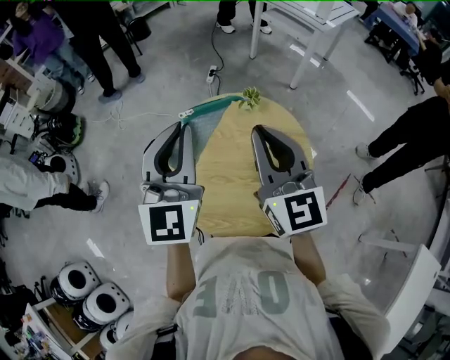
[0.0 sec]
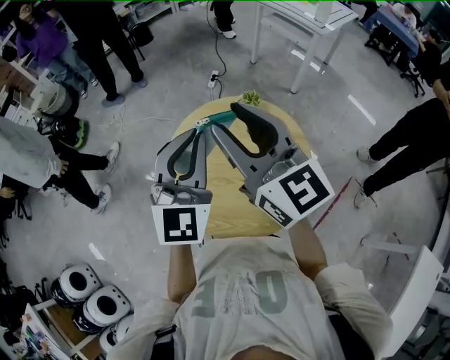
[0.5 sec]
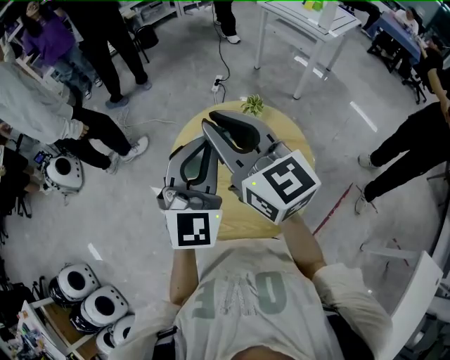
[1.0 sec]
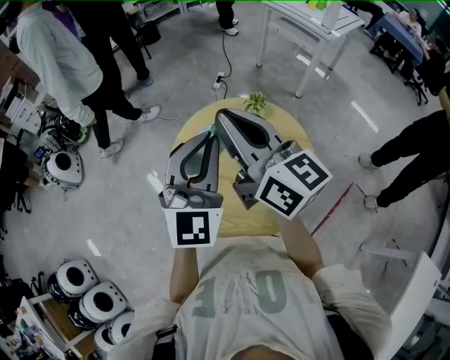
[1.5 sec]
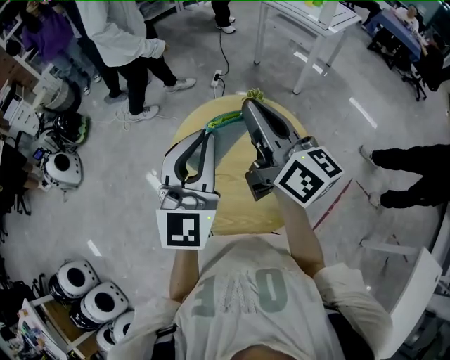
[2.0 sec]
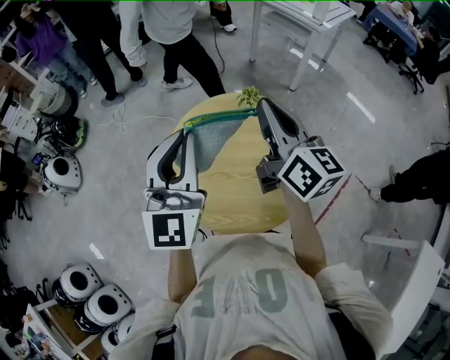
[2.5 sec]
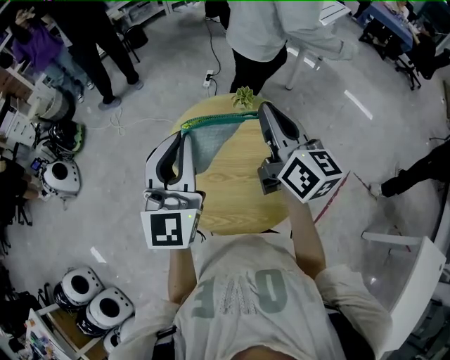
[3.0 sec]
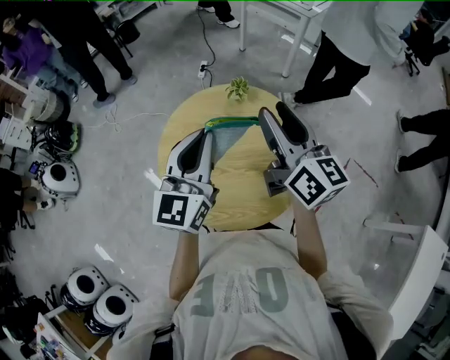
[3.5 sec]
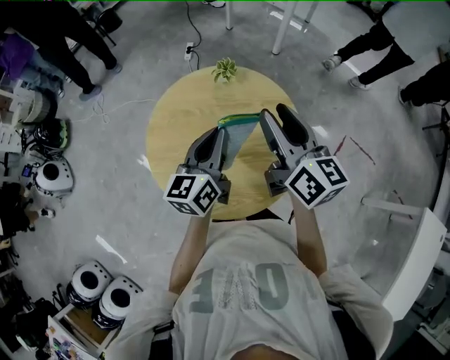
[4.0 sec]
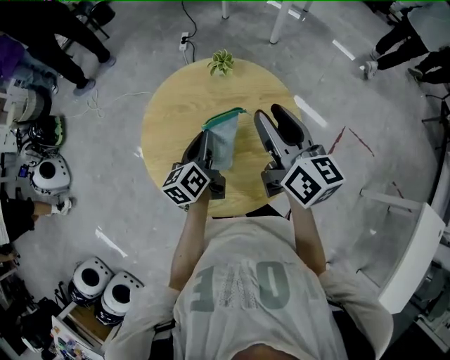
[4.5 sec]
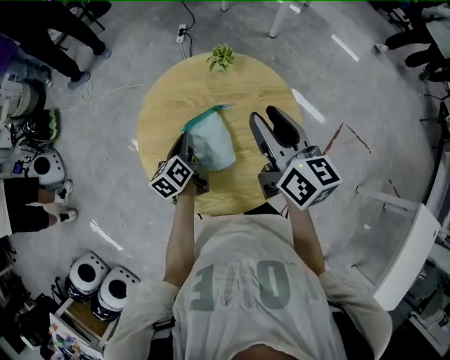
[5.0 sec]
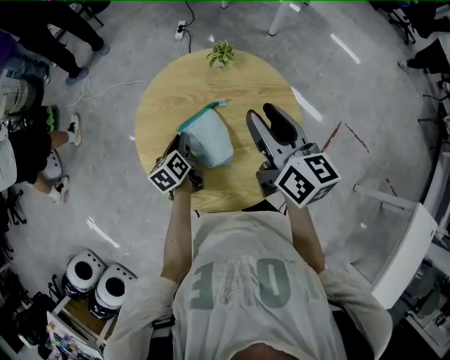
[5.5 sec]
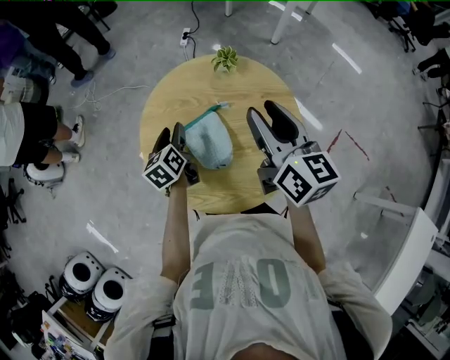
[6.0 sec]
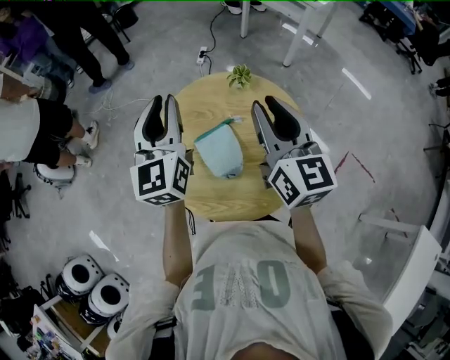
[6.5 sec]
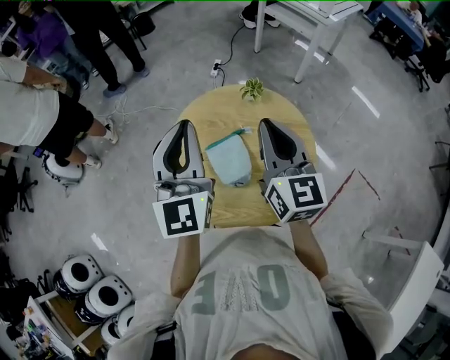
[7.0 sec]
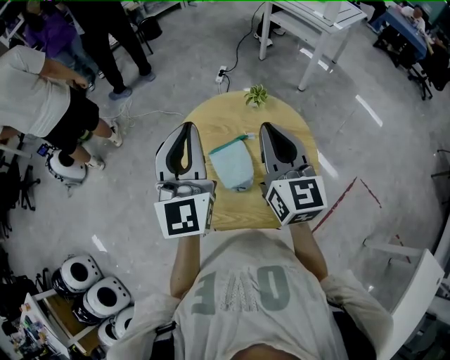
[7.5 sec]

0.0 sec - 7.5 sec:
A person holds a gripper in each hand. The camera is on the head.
0.0 sec - 2.0 sec: The right gripper moves approximately 10 cm to the left and comes back, changes its angle by some 40 degrees, and opens, then closes once more, while the left gripper changes place by about 5 cm.
2.0 sec - 4.0 sec: The left gripper shifts roughly 20 cm downward and to the right, and rotates around the line of its fingers by approximately 40 degrees, counterclockwise from behind, while the right gripper moves to the right and downward, approximately 15 cm, changes its angle by roughly 20 degrees, and opens.
4.0 sec - 5.5 sec: The right gripper travels downward by roughly 5 cm. Meanwhile the left gripper travels downward and to the left by some 25 cm, and turns by roughly 40 degrees.
5.5 sec - 7.5 sec: The left gripper is displaced upward by roughly 40 cm, tilts its fingers approximately 40 degrees upward, and opens and closes again. Meanwhile the right gripper goes some 10 cm upward and to the left, swivels some 30 degrees, and closes its fingers.

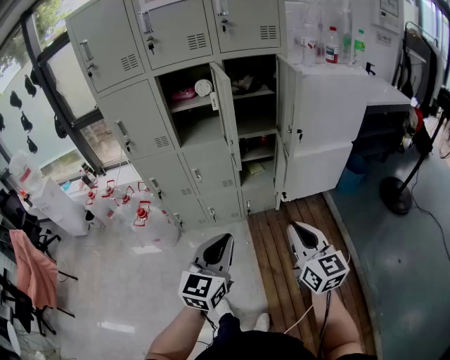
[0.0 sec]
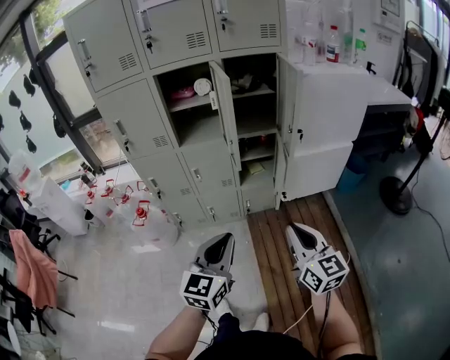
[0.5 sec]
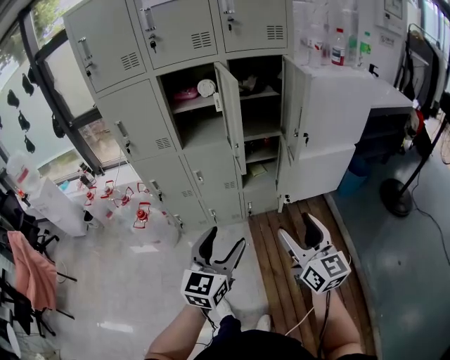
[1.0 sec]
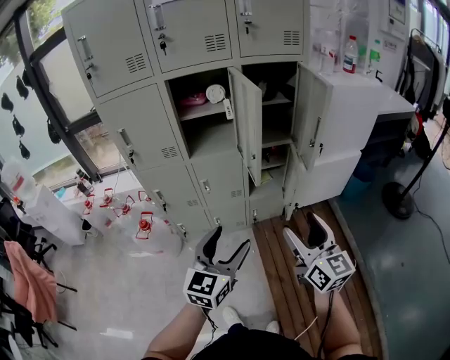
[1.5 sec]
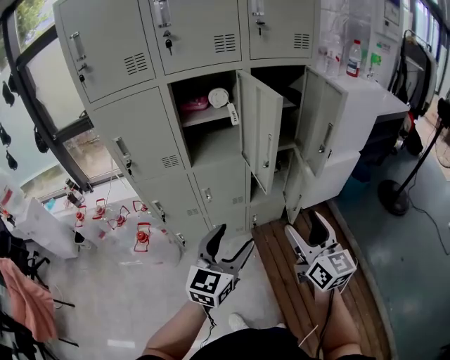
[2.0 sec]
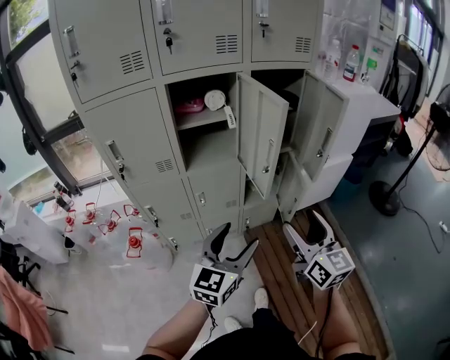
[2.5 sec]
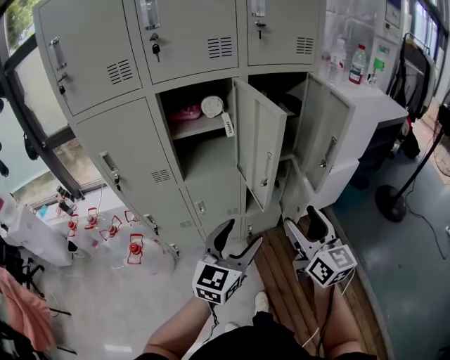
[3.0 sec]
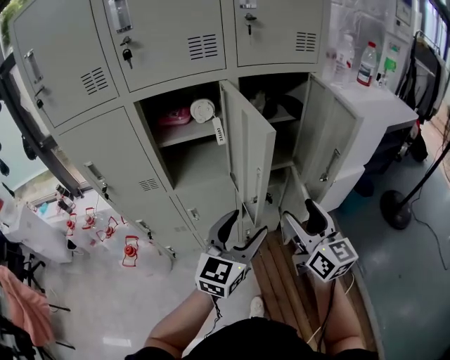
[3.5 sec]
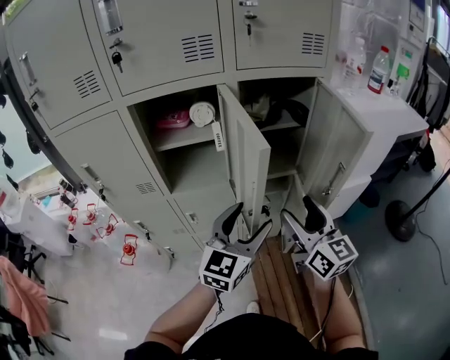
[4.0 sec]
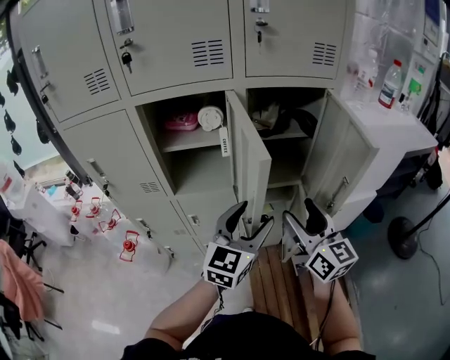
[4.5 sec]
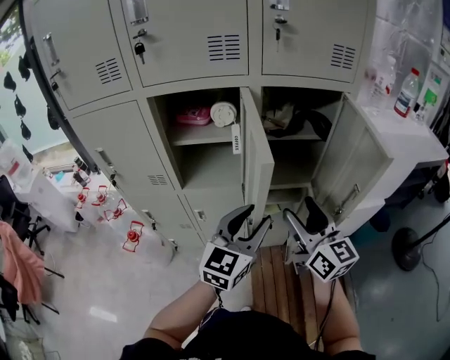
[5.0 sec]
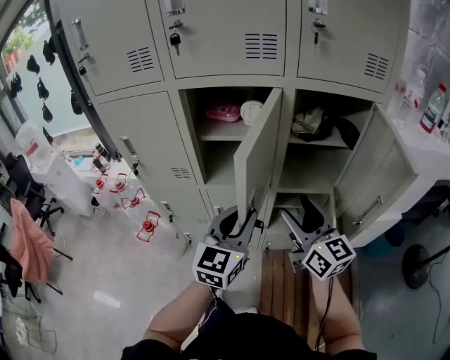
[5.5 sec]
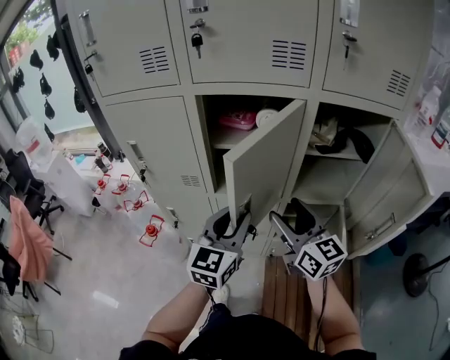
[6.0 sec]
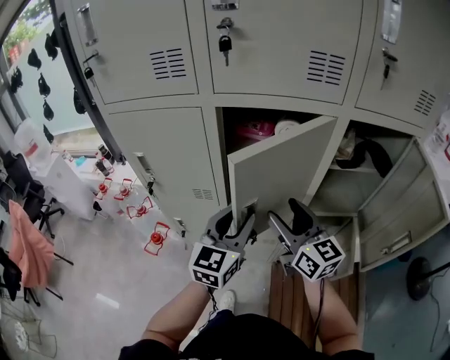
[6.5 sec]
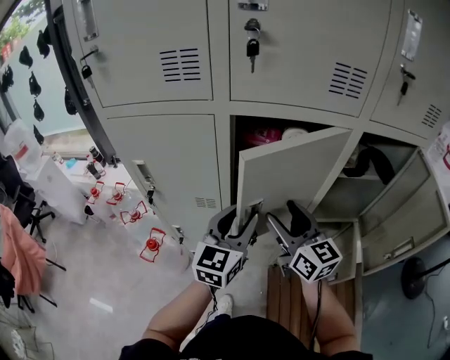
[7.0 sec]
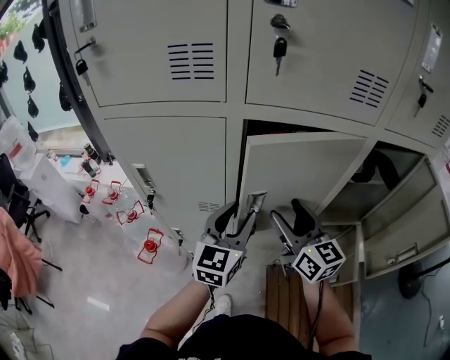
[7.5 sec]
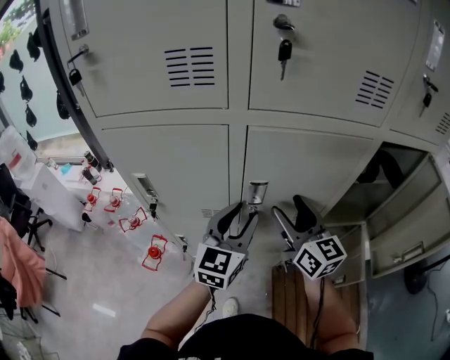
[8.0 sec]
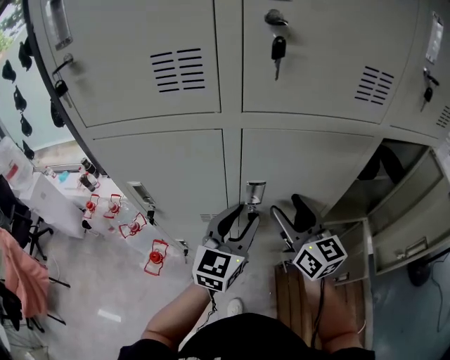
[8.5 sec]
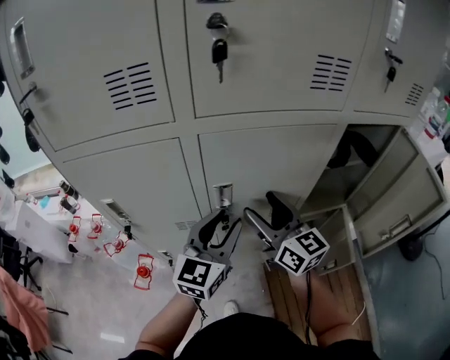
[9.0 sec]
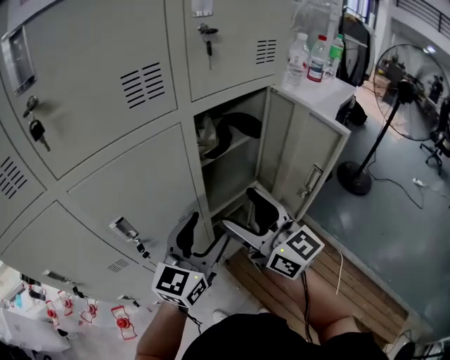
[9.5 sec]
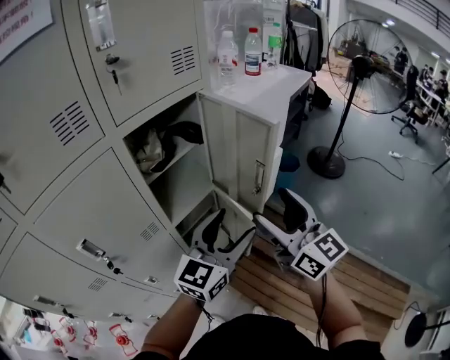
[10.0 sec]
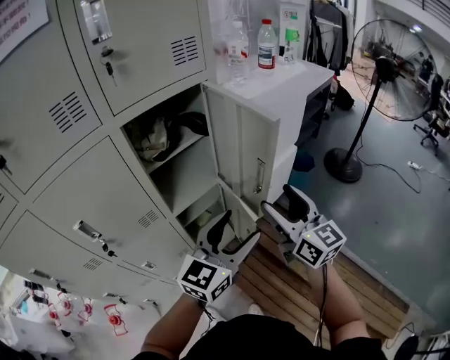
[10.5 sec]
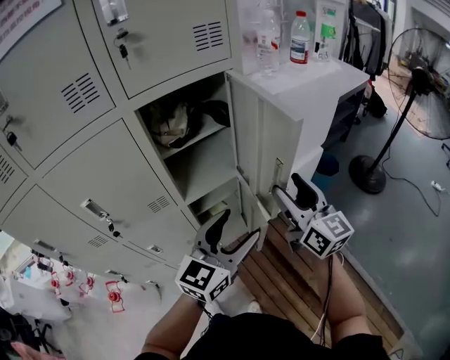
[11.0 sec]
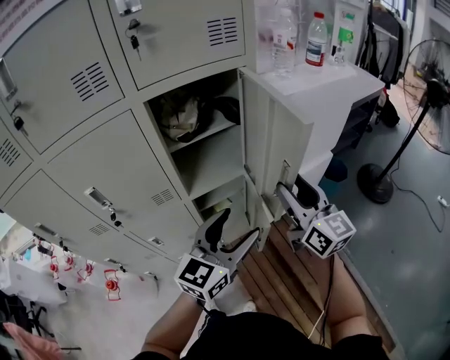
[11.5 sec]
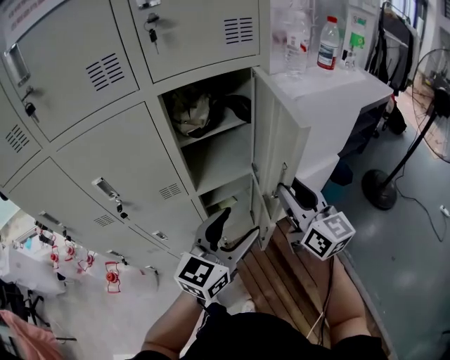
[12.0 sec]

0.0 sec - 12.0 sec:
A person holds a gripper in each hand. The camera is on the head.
0.0 sec - 2.0 sec: The right gripper moves to the left and forward, about 20 cm, and opens up, while the left gripper moves forward and to the left, approximately 20 cm, and opens.
2.0 sec - 4.0 sec: The left gripper shifts about 25 cm forward and to the right; the right gripper heads forward, covering some 25 cm.
4.0 sec - 6.0 sec: The left gripper moves to the left, some 15 cm, rotates approximately 20 degrees, and closes. The right gripper heads to the left and forward, covering approximately 20 cm, and changes its angle by approximately 20 degrees.
6.0 sec - 8.0 sec: The two grippers go some 15 cm forward and to the left.
8.0 sec - 10.0 sec: The right gripper shifts by approximately 30 cm, and swivels approximately 50 degrees, while the left gripper changes place by approximately 25 cm, swivels some 60 degrees, and opens up.
10.0 sec - 12.0 sec: The left gripper changes its angle by roughly 20 degrees. Meanwhile the right gripper goes roughly 10 cm forward and downward, and closes.

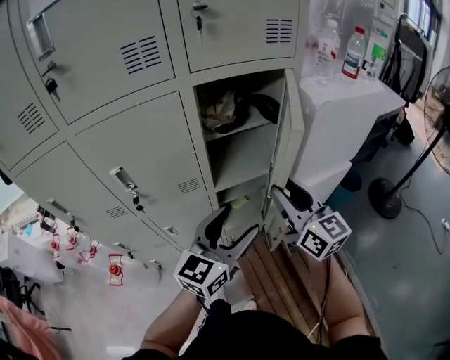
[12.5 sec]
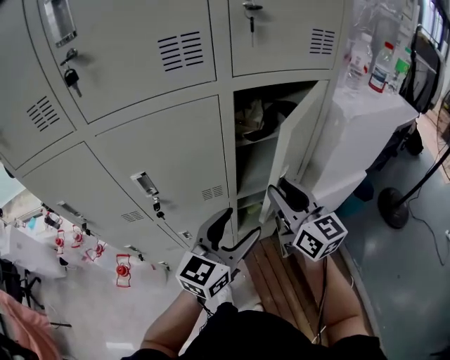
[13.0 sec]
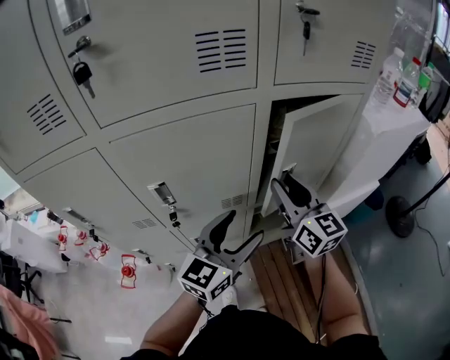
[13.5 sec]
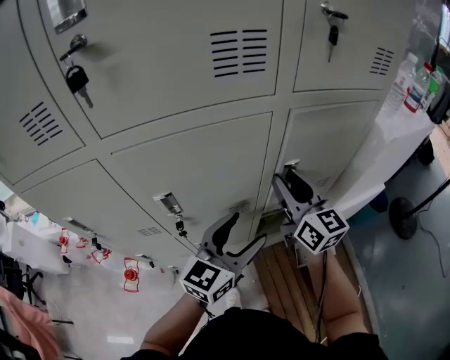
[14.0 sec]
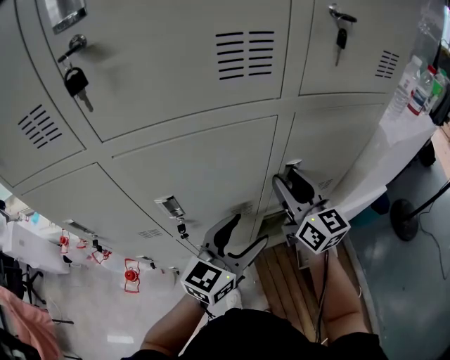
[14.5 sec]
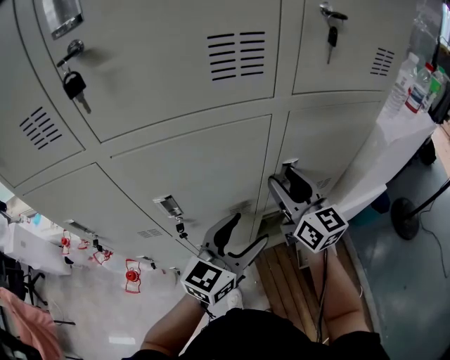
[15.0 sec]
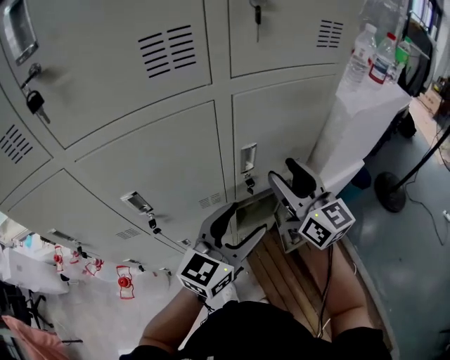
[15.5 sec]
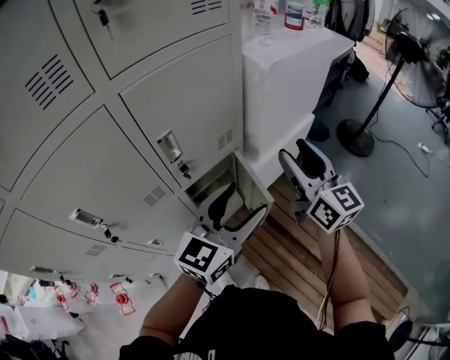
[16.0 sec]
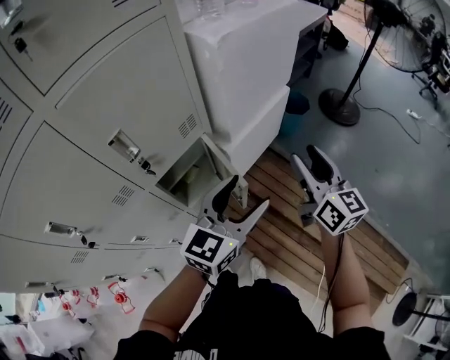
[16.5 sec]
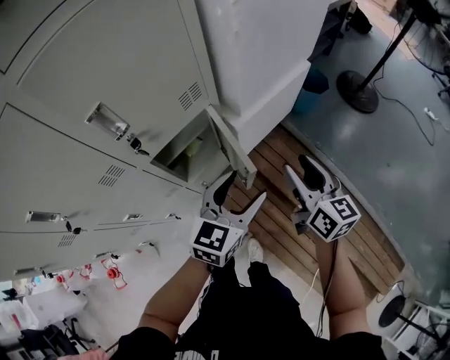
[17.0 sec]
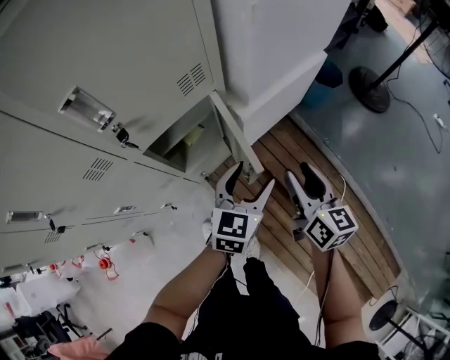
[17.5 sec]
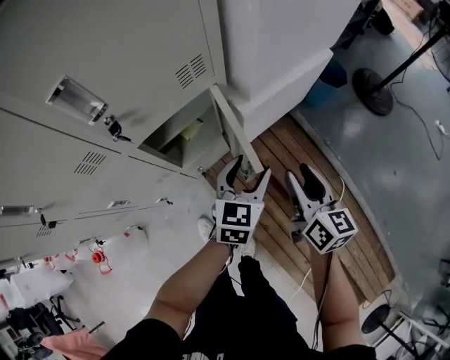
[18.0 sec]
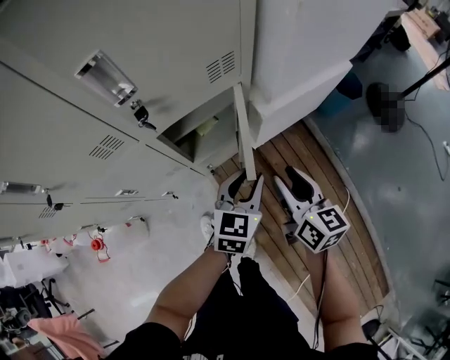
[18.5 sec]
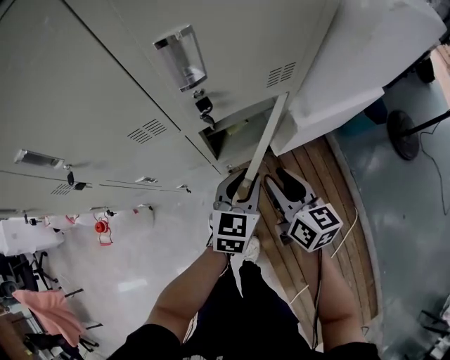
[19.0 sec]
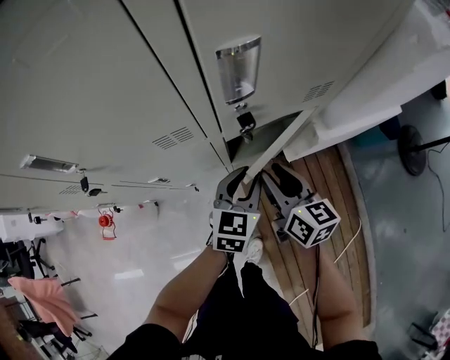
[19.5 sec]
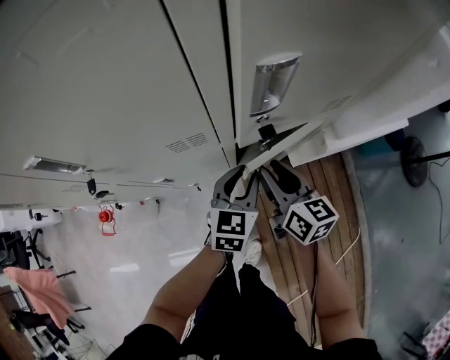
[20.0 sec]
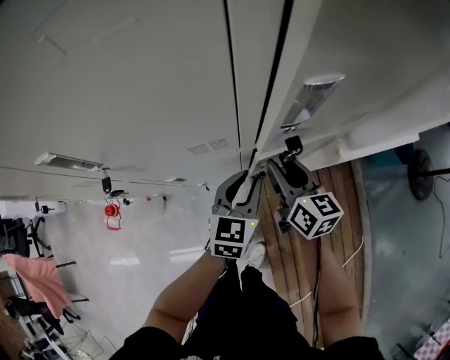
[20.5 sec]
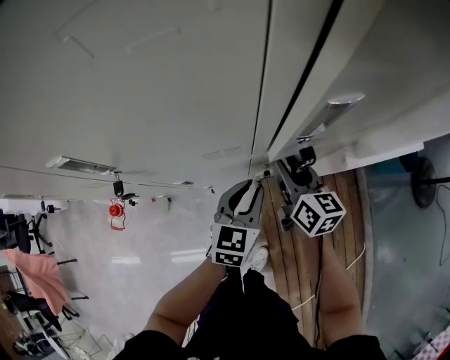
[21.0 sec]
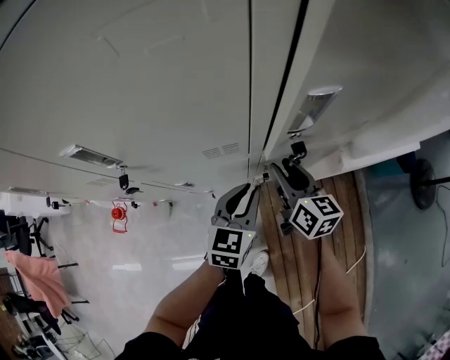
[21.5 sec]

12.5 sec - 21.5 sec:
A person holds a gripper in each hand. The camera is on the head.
12.5 sec - 14.5 sec: The grippers both shift to the left and forward by roughly 20 cm.
14.5 sec - 17.0 sec: The right gripper ends up roughly 40 cm from where it was, and rotates some 40 degrees; the left gripper ends up approximately 35 cm from where it was, and rotates roughly 30 degrees.
17.0 sec - 19.5 sec: The left gripper moves about 25 cm, turns by about 30 degrees, and closes its fingers; the right gripper moves about 30 cm, and rotates roughly 30 degrees.
19.5 sec - 21.5 sec: The left gripper goes approximately 10 cm to the left, while the right gripper moves forward and to the left, about 10 cm.
